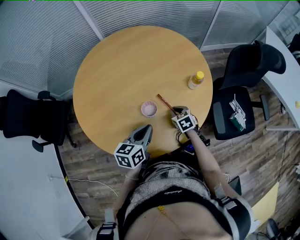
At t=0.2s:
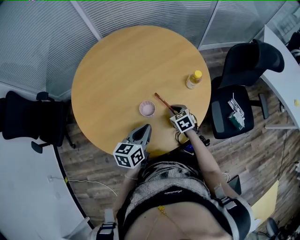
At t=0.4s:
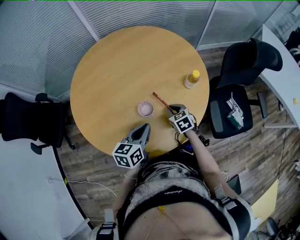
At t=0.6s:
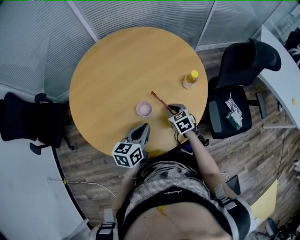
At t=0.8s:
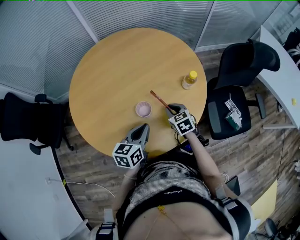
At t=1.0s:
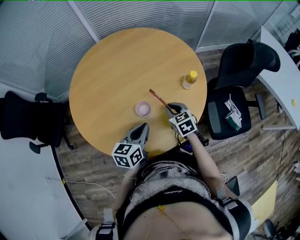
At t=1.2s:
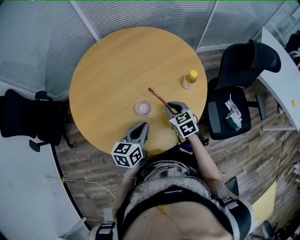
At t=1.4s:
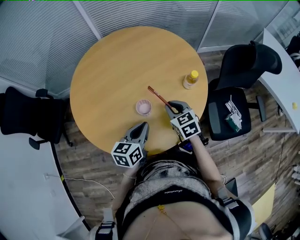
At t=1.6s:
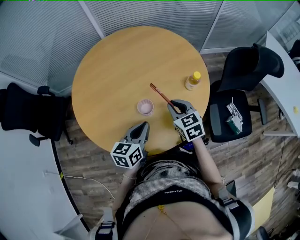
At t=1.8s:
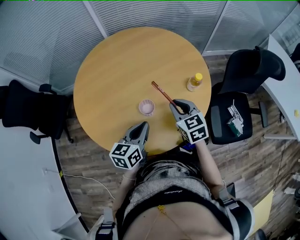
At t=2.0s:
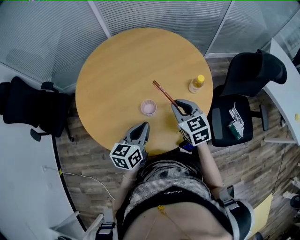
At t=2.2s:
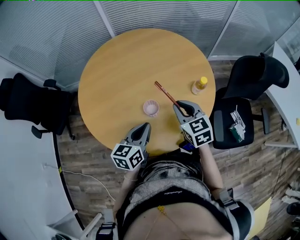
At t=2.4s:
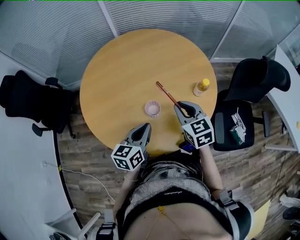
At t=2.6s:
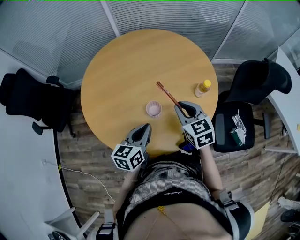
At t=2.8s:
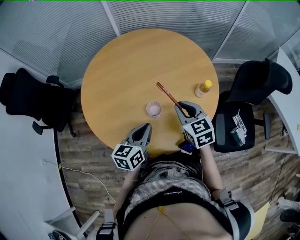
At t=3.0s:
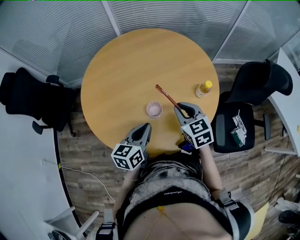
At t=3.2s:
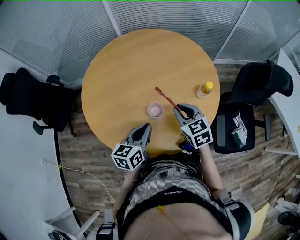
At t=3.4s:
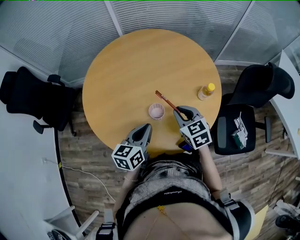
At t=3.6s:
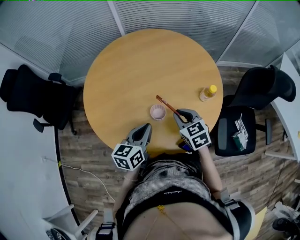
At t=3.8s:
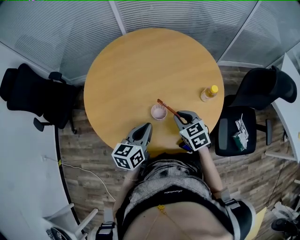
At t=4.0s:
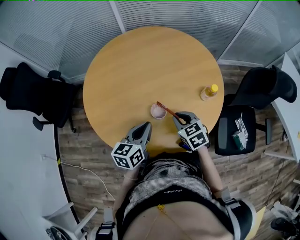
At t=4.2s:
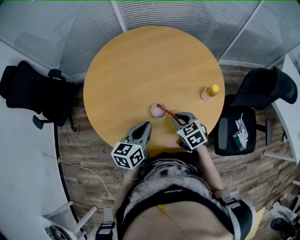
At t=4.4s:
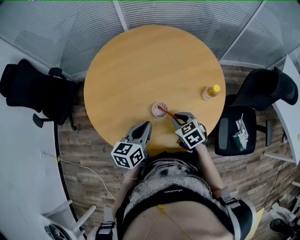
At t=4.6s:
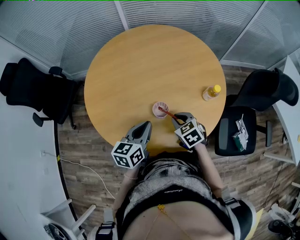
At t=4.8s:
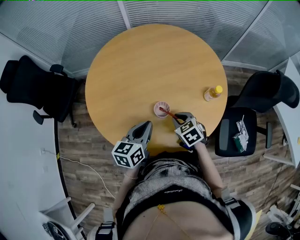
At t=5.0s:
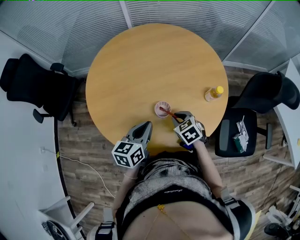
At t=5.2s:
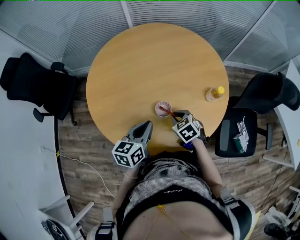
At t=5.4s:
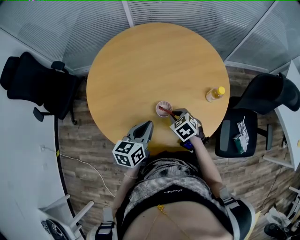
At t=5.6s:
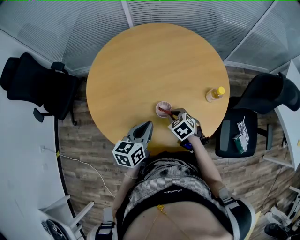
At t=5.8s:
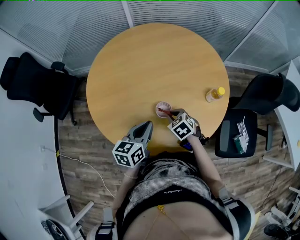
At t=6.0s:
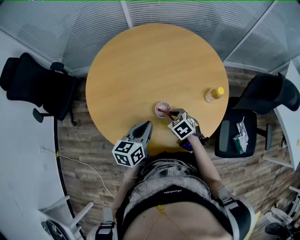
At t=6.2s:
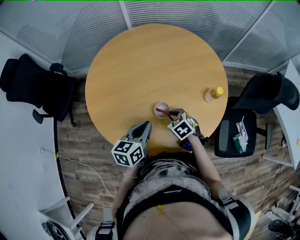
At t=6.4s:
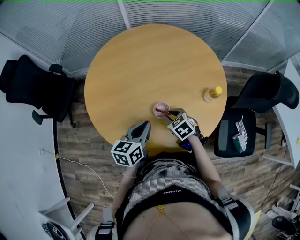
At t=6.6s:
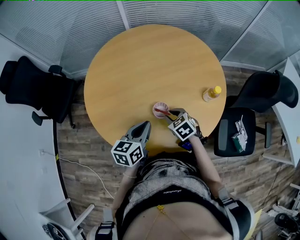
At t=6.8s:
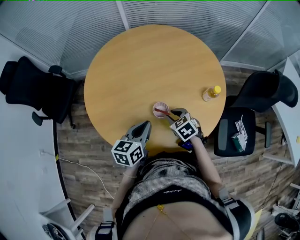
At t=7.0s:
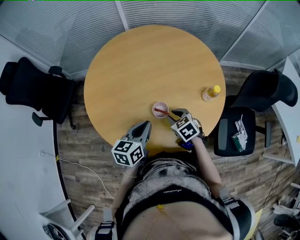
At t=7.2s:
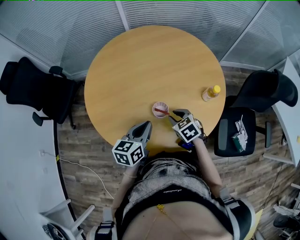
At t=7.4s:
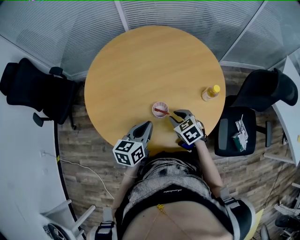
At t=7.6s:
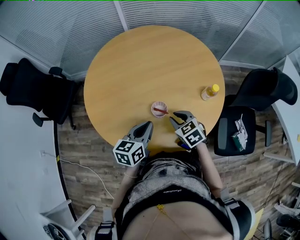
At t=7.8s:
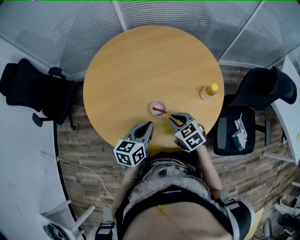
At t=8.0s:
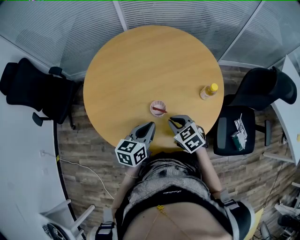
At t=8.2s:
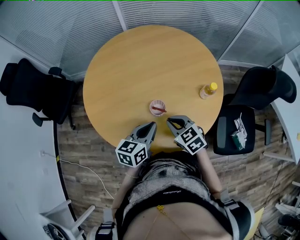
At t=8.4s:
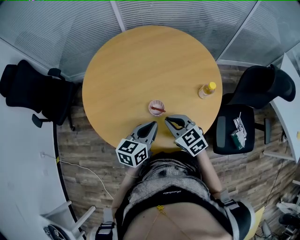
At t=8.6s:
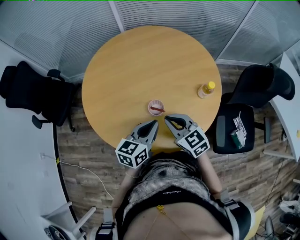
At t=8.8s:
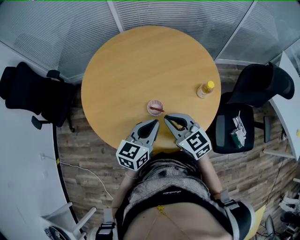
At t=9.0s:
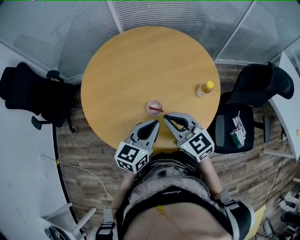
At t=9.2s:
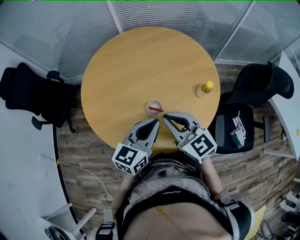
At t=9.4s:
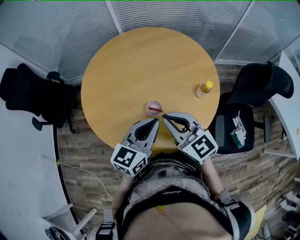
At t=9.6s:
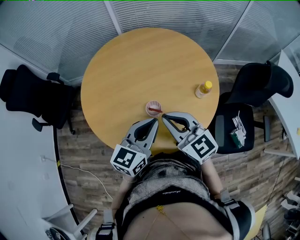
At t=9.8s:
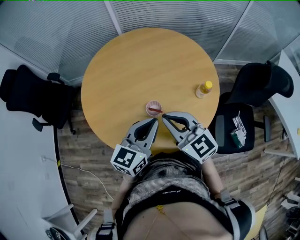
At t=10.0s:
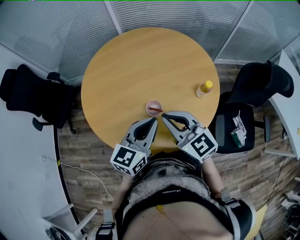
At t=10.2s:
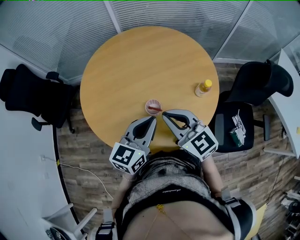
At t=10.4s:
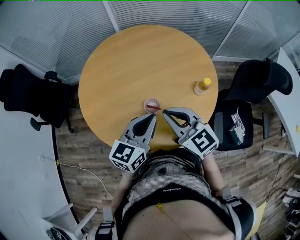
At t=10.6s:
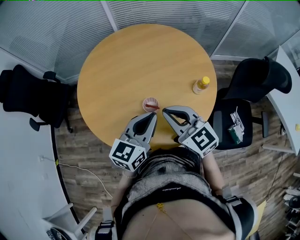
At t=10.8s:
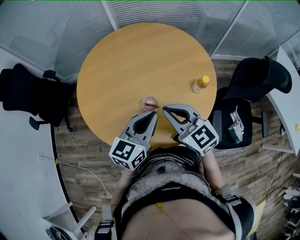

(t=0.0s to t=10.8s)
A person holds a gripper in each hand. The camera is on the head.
t=0.0s - t=1.6s: The right gripper heads upward, covering about 15 cm.
t=1.6s - t=3.0s: The grippers stay close to where they were, moving slightly.
t=3.0s - t=4.6s: The right gripper goes roughly 10 cm downward, and turns by roughly 20 degrees.
t=4.6s - t=6.2s: The right gripper ends up approximately 5 cm from where it was.
t=6.2s - t=7.8s: The right gripper shifts about 5 cm upward.
t=7.8s - t=9.2s: The right gripper heads upward, covering roughly 15 cm, and tilts its fingers some 30 degrees upward. The left gripper goes about 10 cm upward.
t=9.2s - t=10.8s: The grippers make only small movements.

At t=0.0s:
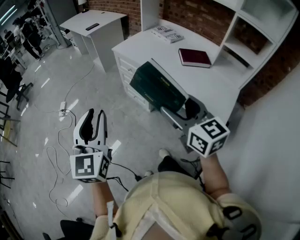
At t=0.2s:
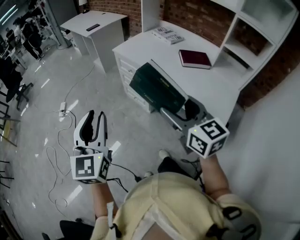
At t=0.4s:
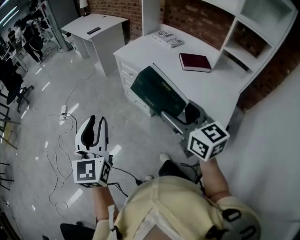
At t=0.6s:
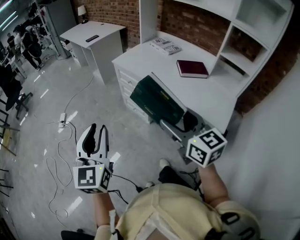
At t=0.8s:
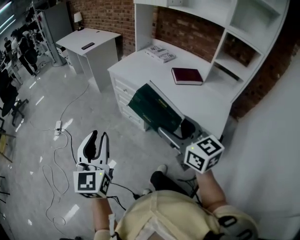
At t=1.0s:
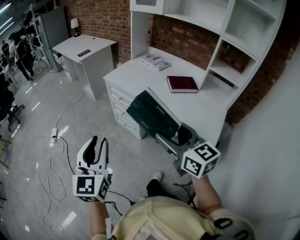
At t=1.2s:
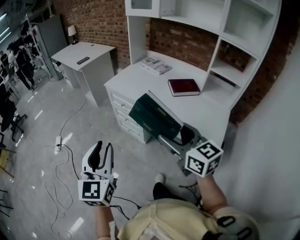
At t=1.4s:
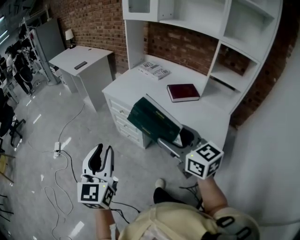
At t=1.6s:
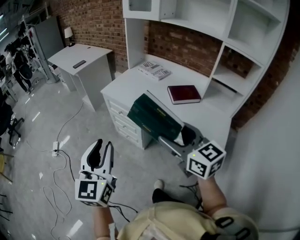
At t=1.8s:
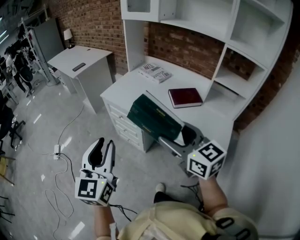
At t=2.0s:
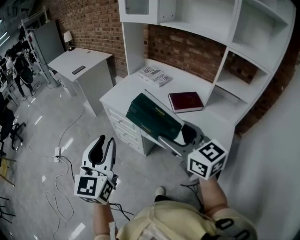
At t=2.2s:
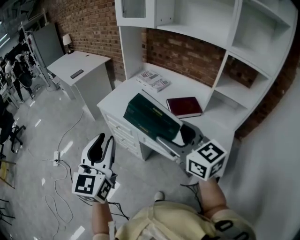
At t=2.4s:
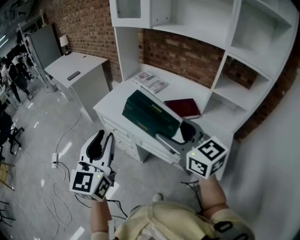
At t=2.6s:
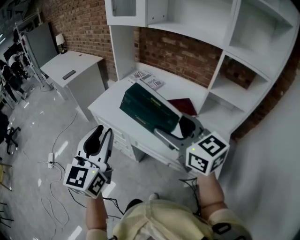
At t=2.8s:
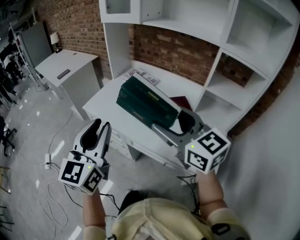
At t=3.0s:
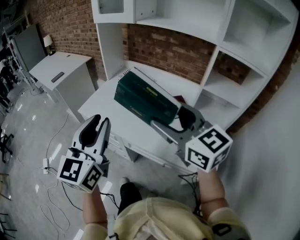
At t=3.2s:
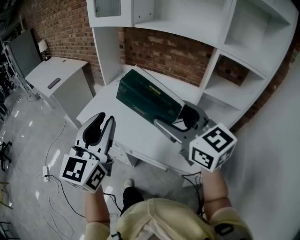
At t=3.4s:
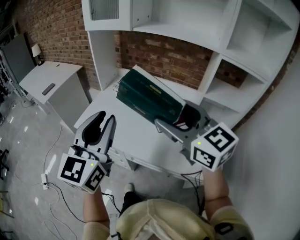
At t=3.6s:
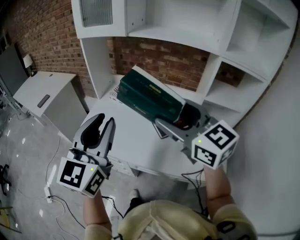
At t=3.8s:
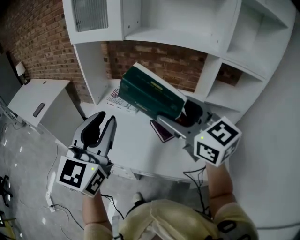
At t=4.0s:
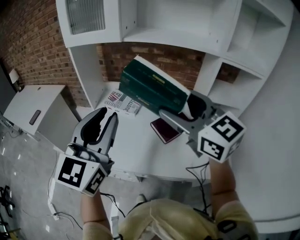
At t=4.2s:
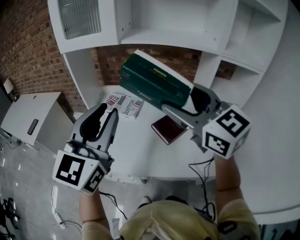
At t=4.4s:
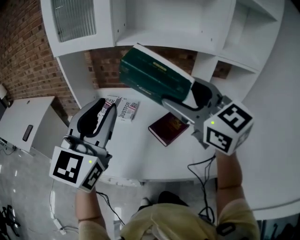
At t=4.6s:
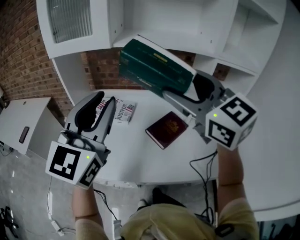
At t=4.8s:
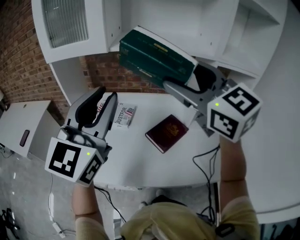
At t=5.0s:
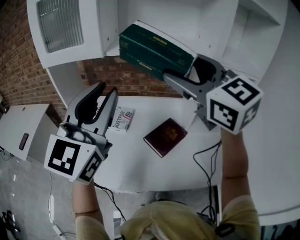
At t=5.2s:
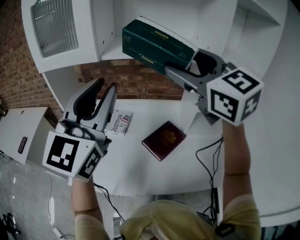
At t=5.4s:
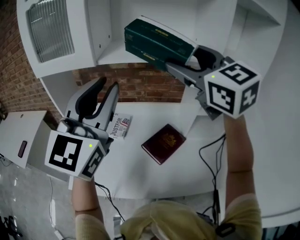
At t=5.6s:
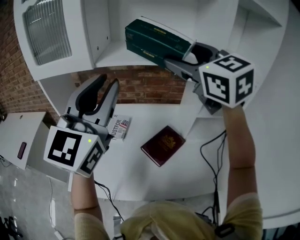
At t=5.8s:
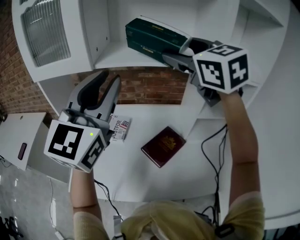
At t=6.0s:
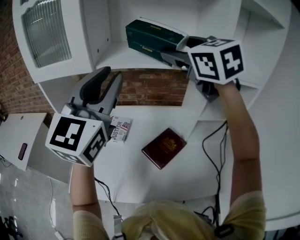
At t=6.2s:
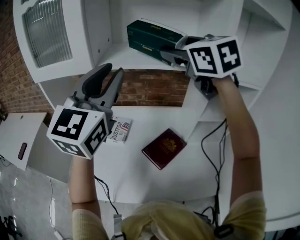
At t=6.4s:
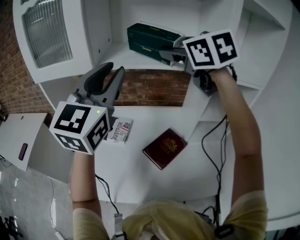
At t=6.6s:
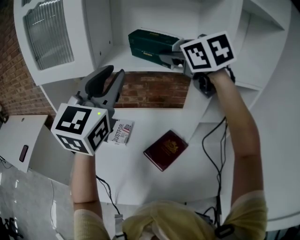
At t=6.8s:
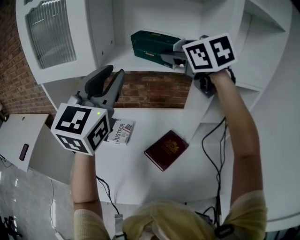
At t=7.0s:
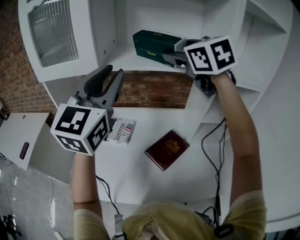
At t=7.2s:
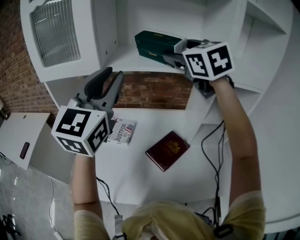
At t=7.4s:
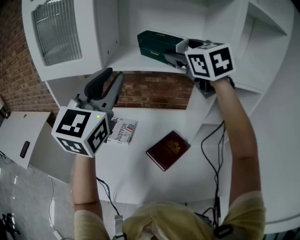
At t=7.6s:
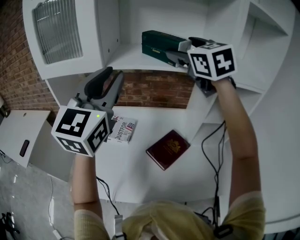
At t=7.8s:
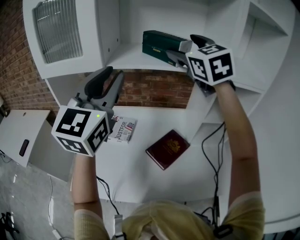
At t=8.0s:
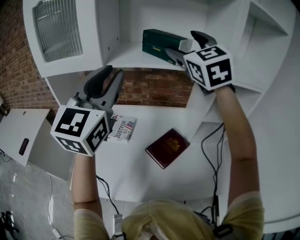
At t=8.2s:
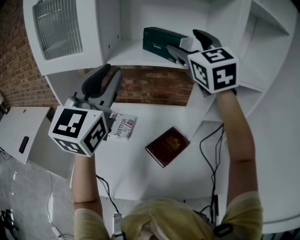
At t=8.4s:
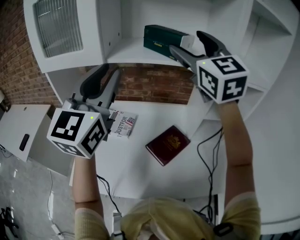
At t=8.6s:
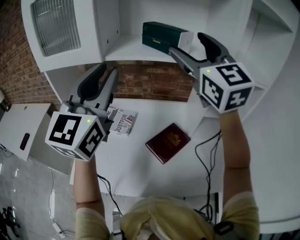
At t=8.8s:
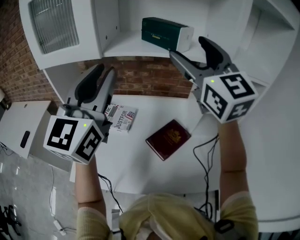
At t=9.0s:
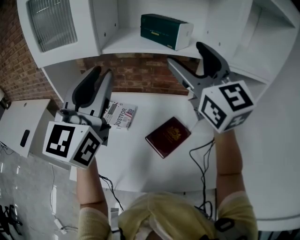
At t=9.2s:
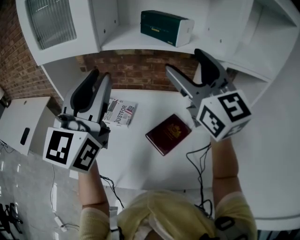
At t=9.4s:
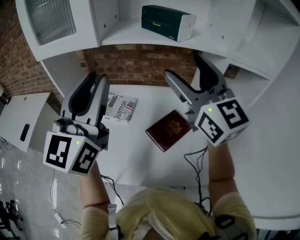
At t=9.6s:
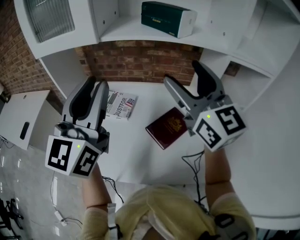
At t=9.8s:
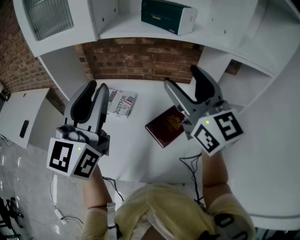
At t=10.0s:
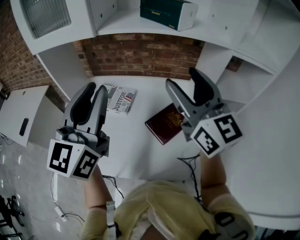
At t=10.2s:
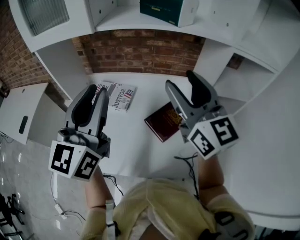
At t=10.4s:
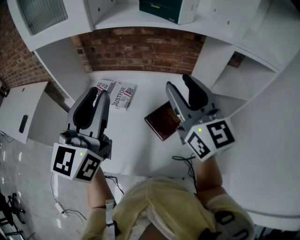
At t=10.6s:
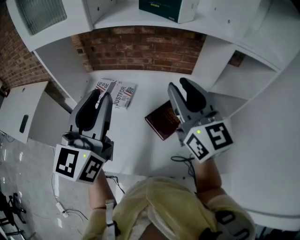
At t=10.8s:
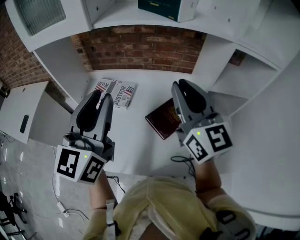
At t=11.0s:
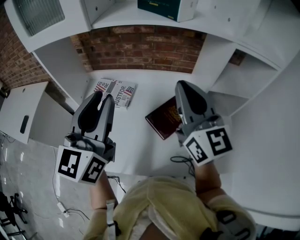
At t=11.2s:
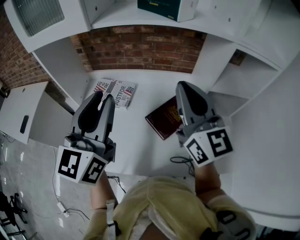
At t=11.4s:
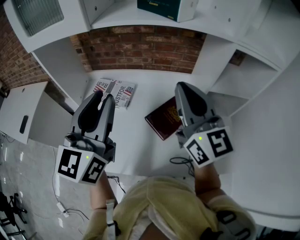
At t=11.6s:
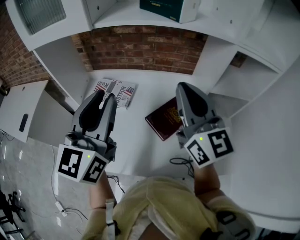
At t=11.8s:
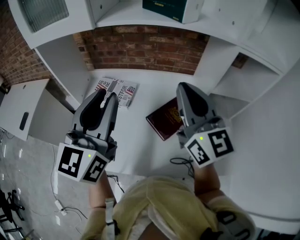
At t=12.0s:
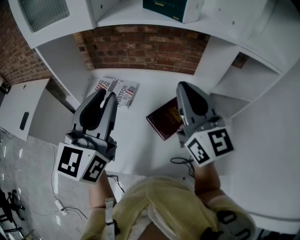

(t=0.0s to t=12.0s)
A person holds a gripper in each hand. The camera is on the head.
t=0.0s - t=1.6s: Both grippers move forward, about 10 cm.
t=1.6s - t=3.0s: The right gripper is displaced forward, to the right and upward by about 20 cm. Meanwhile the left gripper shifts approximately 25 cm forward and to the right.
t=3.0s - t=4.4s: The right gripper shifts by approximately 20 cm, and turns by roughly 30 degrees; the left gripper ends up some 20 cm from where it was, and swivels about 30 degrees.
t=4.4s - t=6.0s: The two grippers go roughly 25 cm forward and upward.
t=6.0s - t=7.6s: The grippers stay close to where they were, moving slightly.
t=7.6s - t=9.0s: The right gripper moves backward, some 10 cm, and changes its angle by some 20 degrees.
t=9.0s - t=10.4s: Both grippers move downward, some 10 cm. The right gripper closes its fingers.
t=10.4s - t=12.0s: The right gripper closes its fingers.

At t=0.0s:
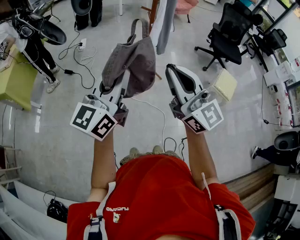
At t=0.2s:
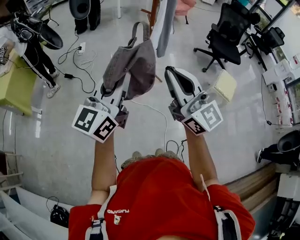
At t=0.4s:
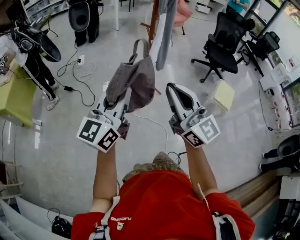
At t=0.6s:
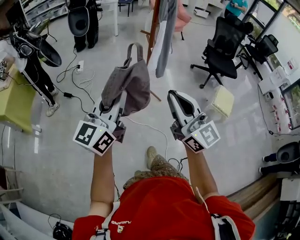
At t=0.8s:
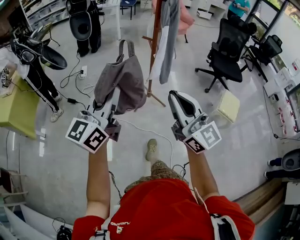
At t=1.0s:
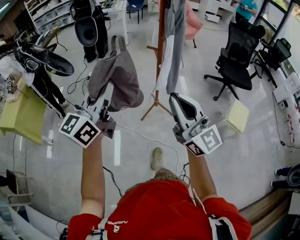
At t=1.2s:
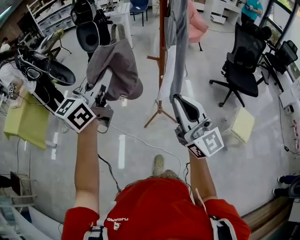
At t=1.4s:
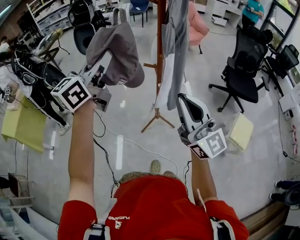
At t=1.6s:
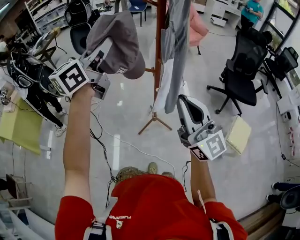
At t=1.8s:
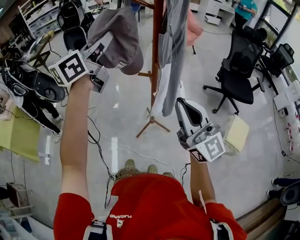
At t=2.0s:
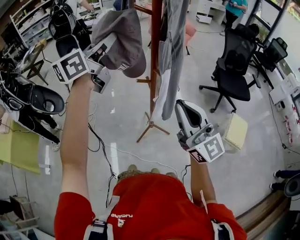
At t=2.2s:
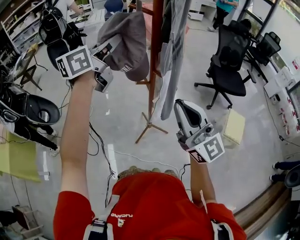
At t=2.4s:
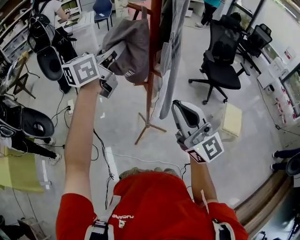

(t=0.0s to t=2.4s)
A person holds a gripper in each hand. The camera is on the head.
t=0.0s - t=1.2s: The two grippers go about 30 cm forward.
t=1.2s - t=2.4s: The left gripper heads forward, covering some 30 cm, and swivels approximately 30 degrees, while the right gripper shifts roughly 15 cm forward.
